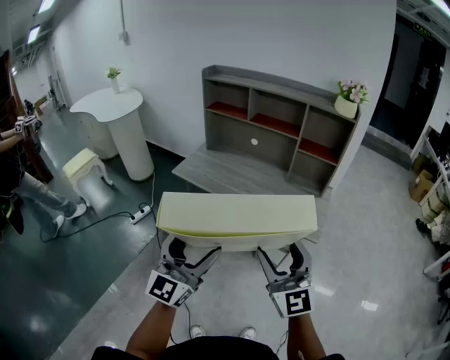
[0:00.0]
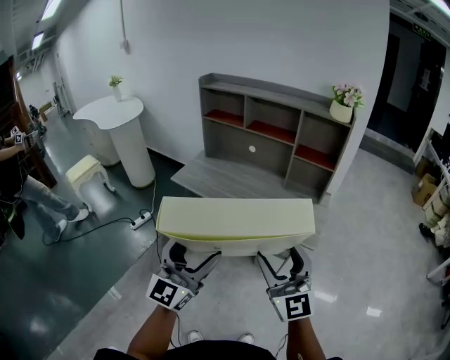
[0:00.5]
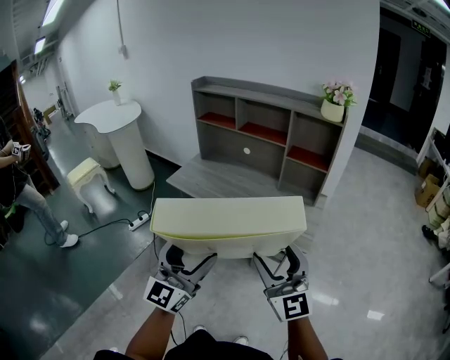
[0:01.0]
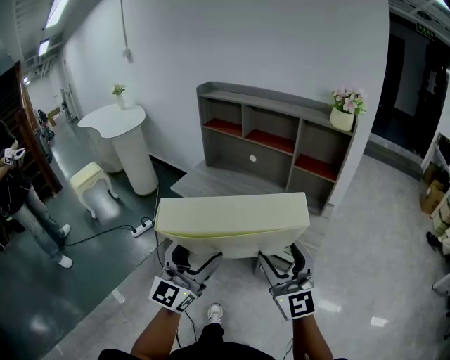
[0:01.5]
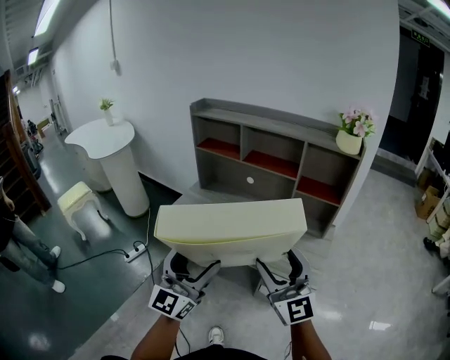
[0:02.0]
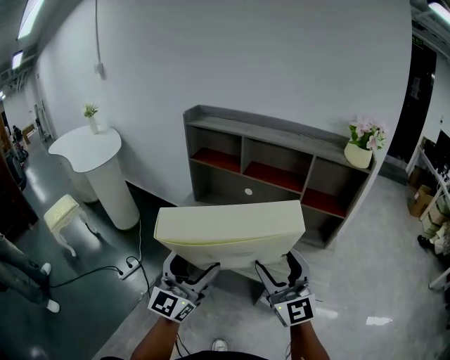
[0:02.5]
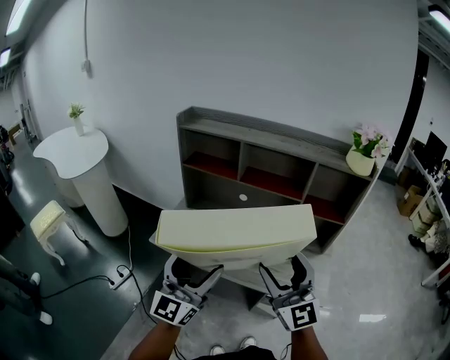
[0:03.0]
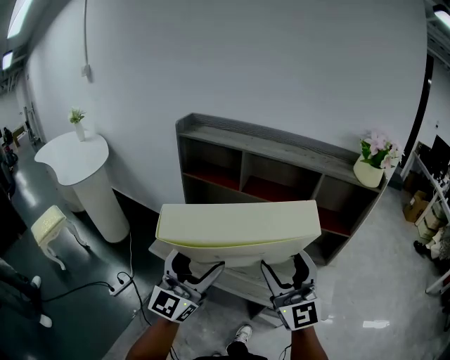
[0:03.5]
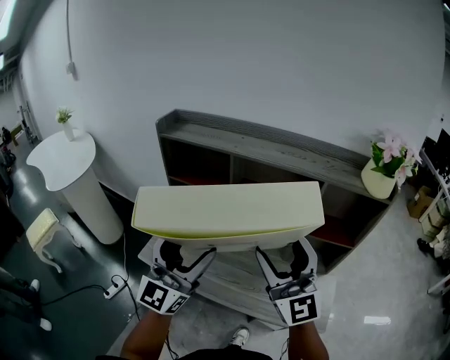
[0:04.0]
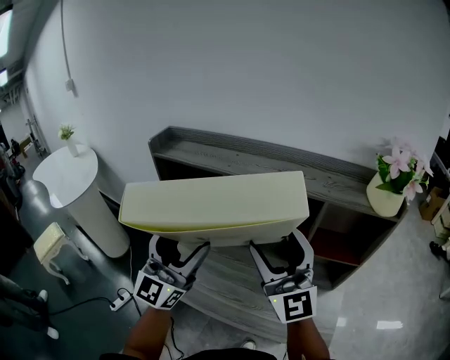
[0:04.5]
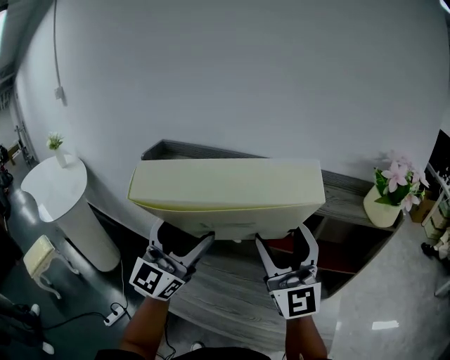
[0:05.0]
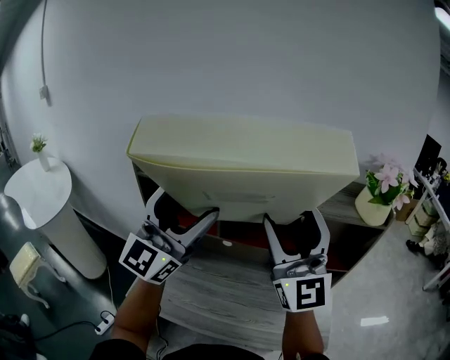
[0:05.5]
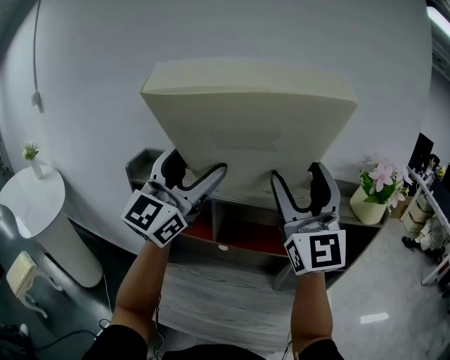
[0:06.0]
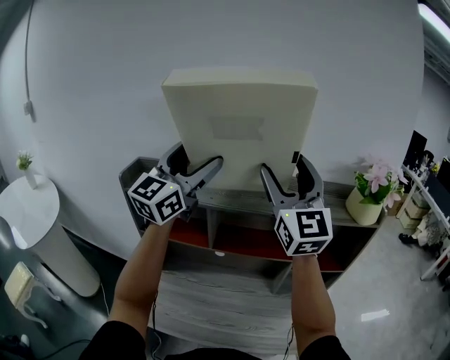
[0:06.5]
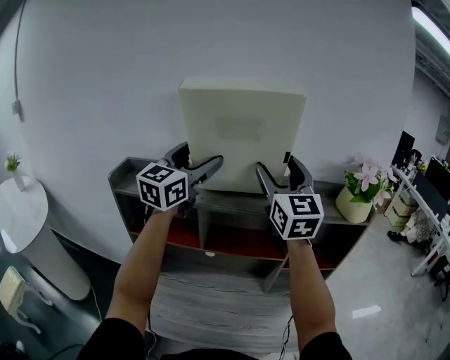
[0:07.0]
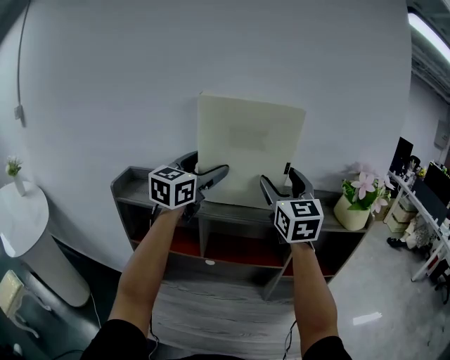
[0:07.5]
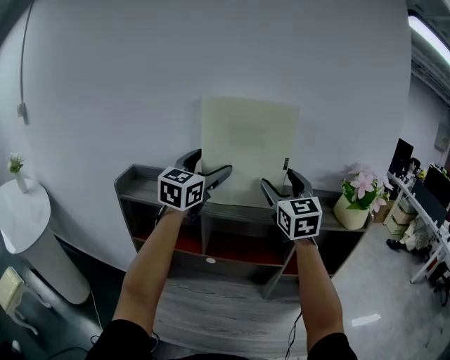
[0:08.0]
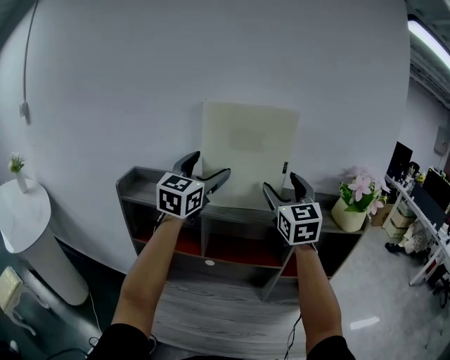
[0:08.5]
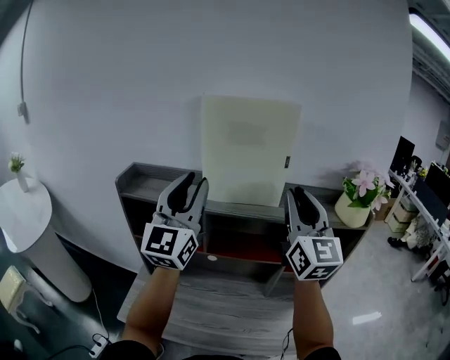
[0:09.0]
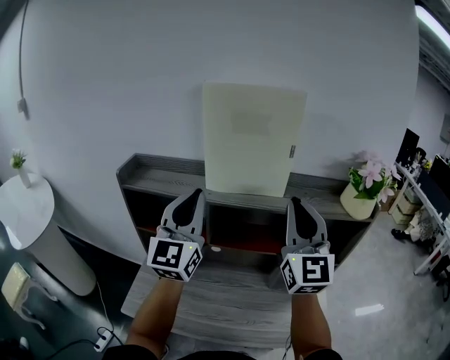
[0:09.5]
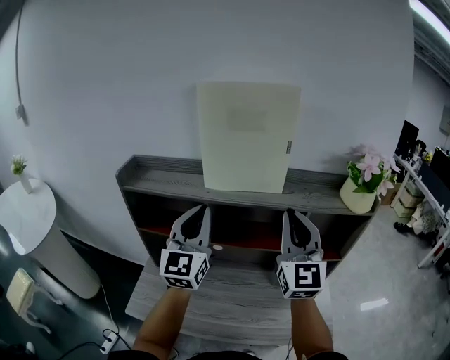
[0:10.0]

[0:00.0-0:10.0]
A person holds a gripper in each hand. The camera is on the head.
0:00.0 to 0:02.0: Both grippers travel together forward, some 15 cm.
0:02.0 to 0:04.0: The grippers both shift forward by some 30 cm.
0:04.0 to 0:06.0: Both grippers move upward and forward, approximately 25 cm.
0:06.0 to 0:08.0: The right gripper is displaced forward and downward by approximately 15 cm, and rotates roughly 30 degrees; the left gripper goes some 15 cm forward, and turns by approximately 20 degrees.
0:08.0 to 0:10.0: Both grippers move backward and downward, roughly 15 cm. The left gripper closes up. The right gripper closes its fingers.

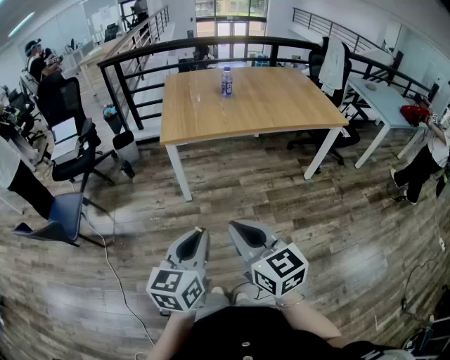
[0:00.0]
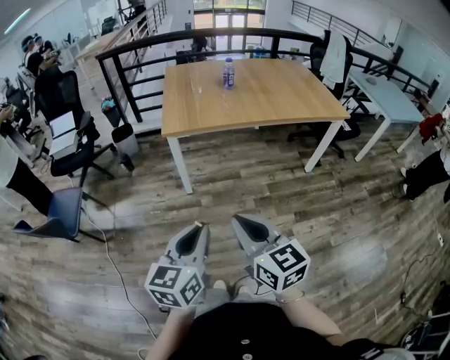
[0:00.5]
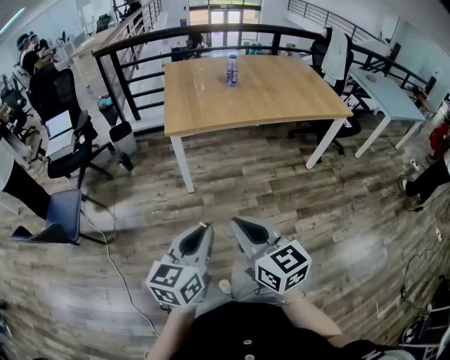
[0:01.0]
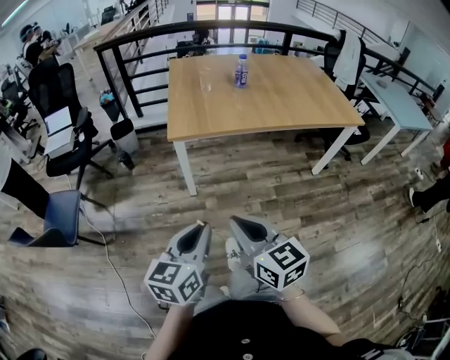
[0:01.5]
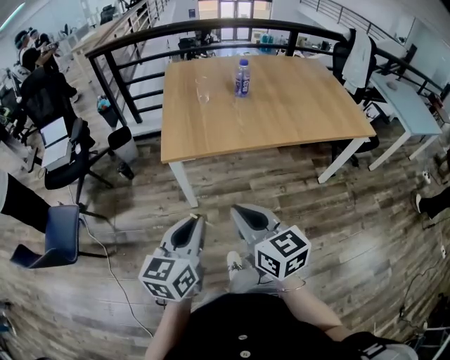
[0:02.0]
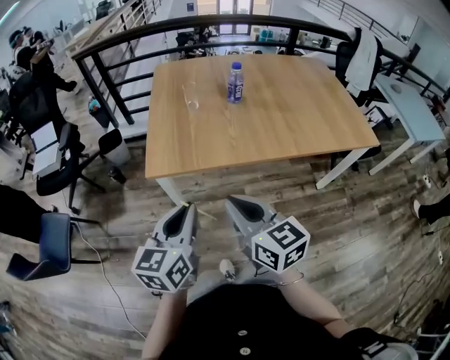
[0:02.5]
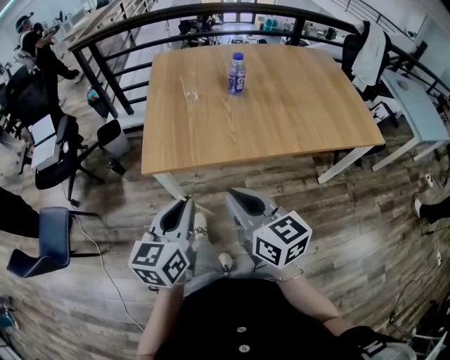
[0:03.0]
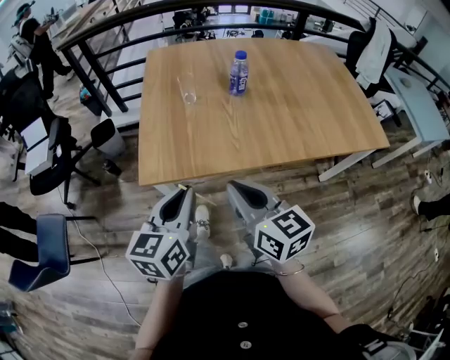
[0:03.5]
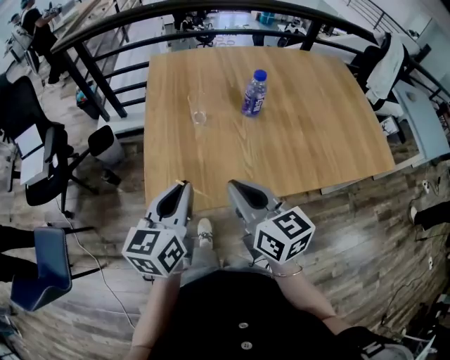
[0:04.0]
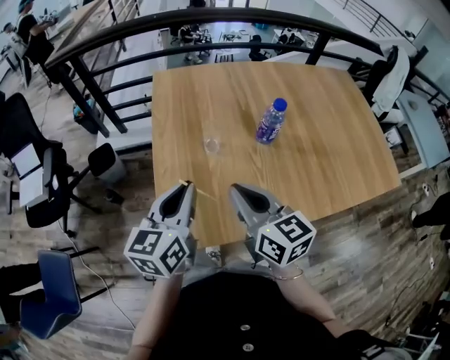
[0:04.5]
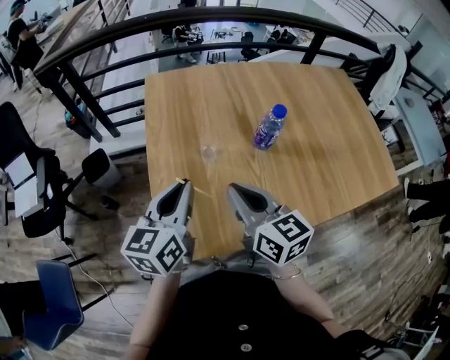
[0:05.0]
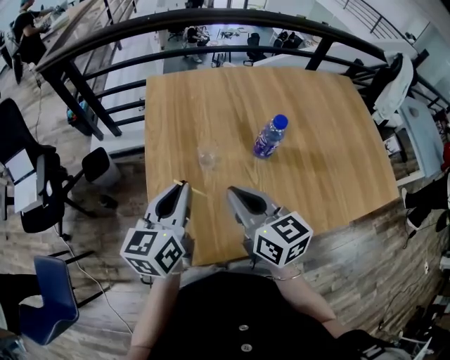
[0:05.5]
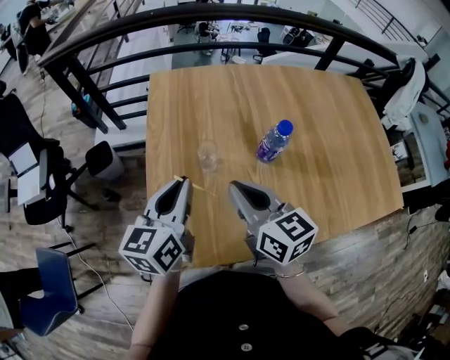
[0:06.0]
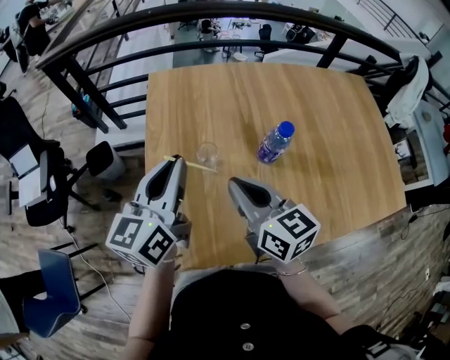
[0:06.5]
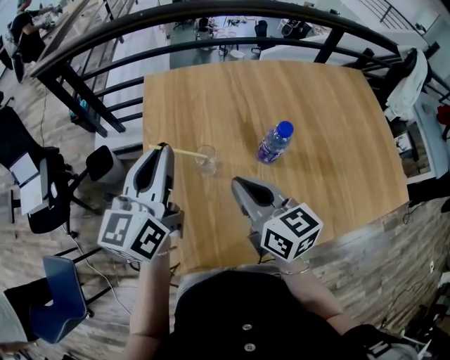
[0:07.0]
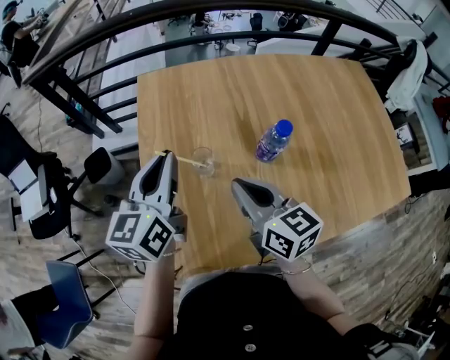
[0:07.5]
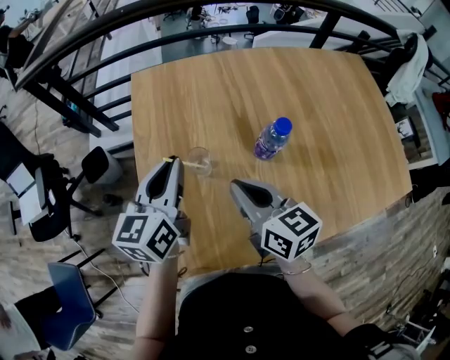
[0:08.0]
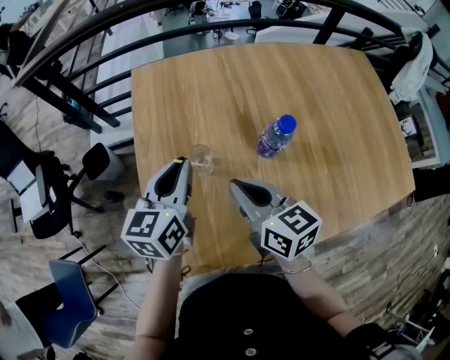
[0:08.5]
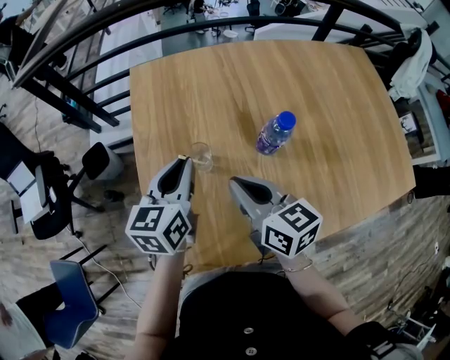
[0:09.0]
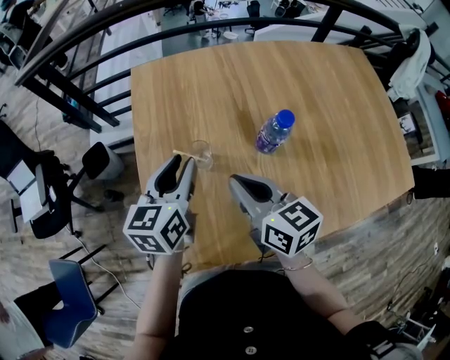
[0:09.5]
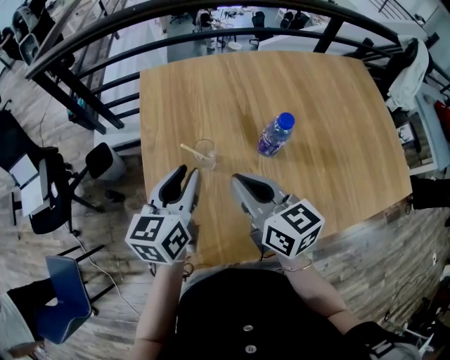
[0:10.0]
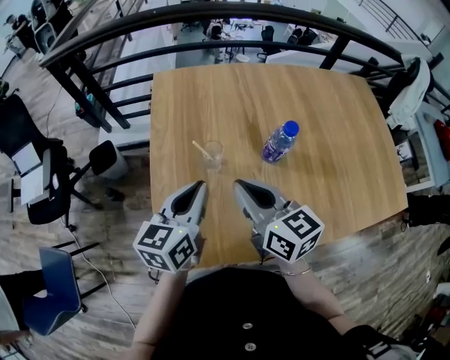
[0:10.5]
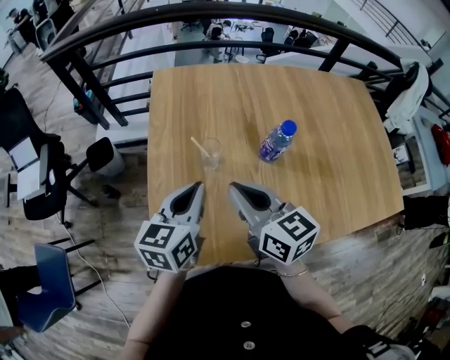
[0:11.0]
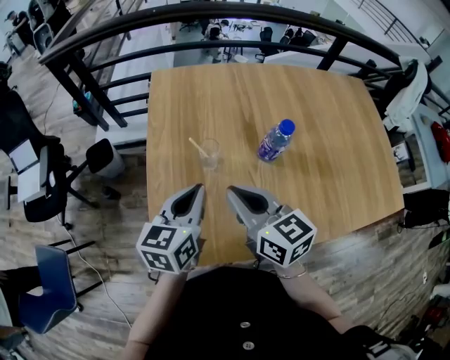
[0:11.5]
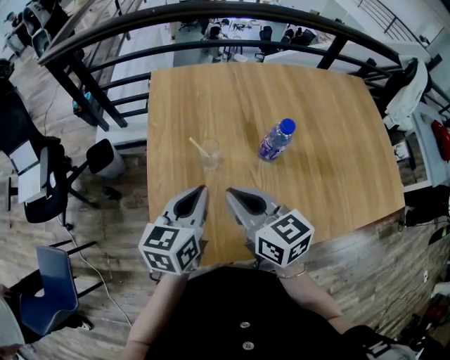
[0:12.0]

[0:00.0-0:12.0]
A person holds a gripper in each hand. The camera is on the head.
0:00.0 to 0:02.0: The two grippers go some 30 cm forward.
0:02.0 to 0:04.0: Both grippers move forward, about 40 cm.
0:04.0 to 0:06.0: The grippers both shift forward by roughly 20 cm.
0:06.0 to 0:08.0: The left gripper goes about 10 cm forward, while the right gripper ends up some 5 cm from where it was.
0:08.0 to 0:10.0: The left gripper changes place by some 5 cm.
0:10.0 to 0:12.0: The left gripper goes about 5 cm backward, and closes its fingers. The right gripper shifts by about 5 cm.

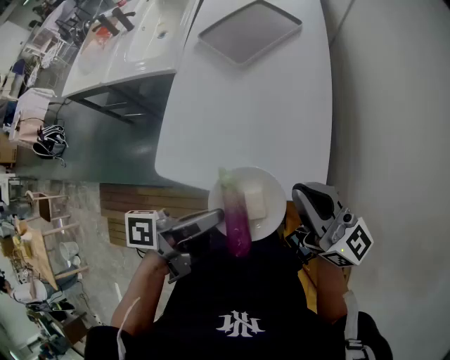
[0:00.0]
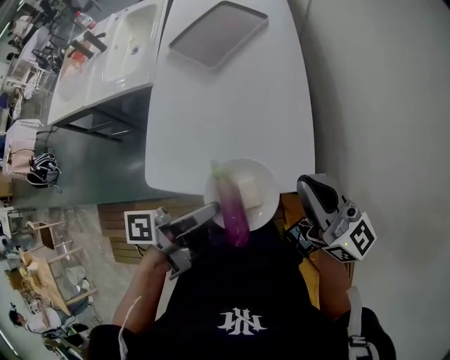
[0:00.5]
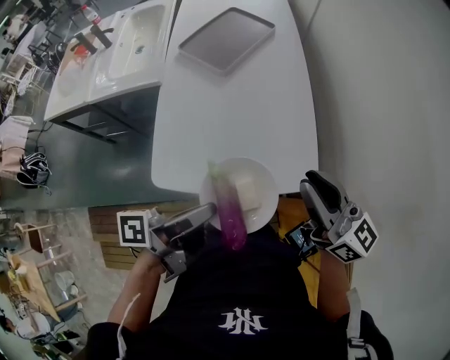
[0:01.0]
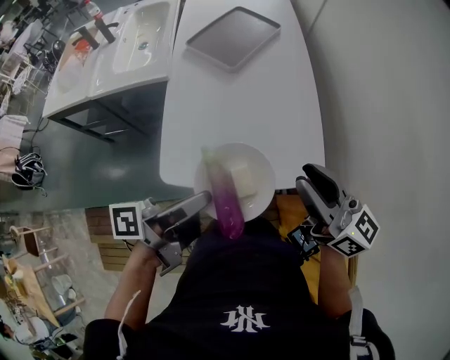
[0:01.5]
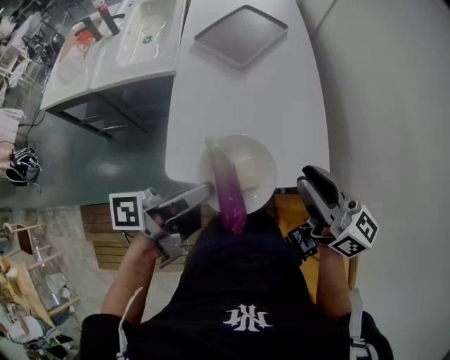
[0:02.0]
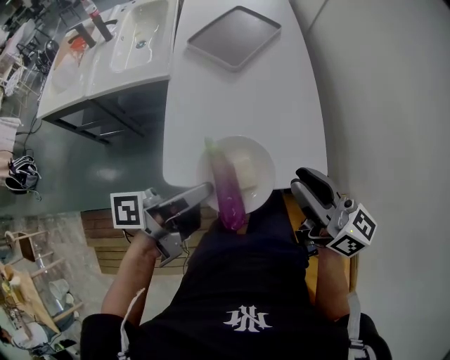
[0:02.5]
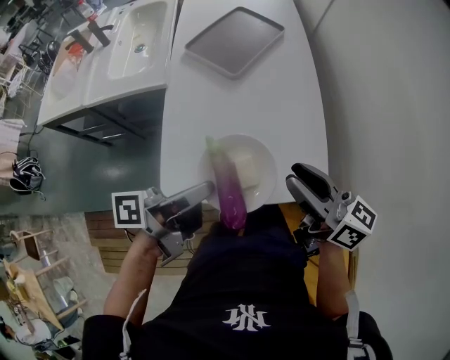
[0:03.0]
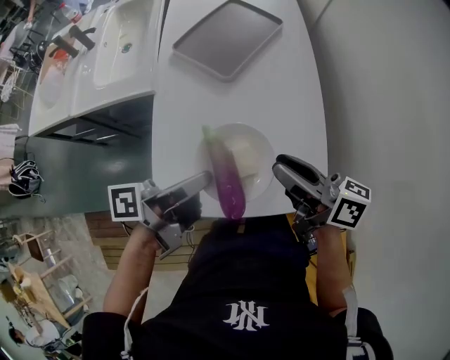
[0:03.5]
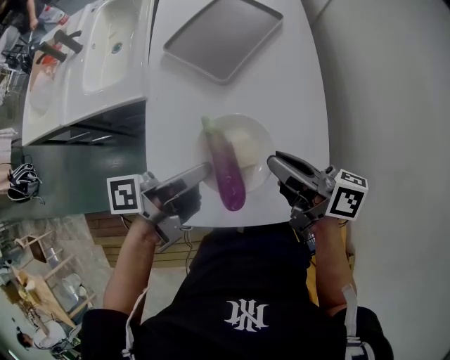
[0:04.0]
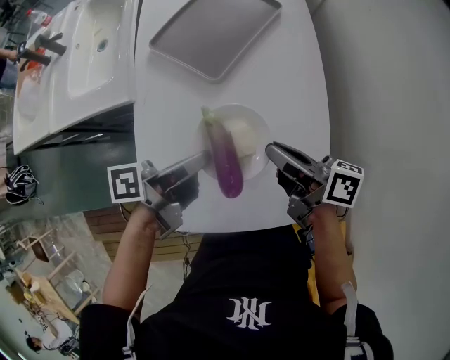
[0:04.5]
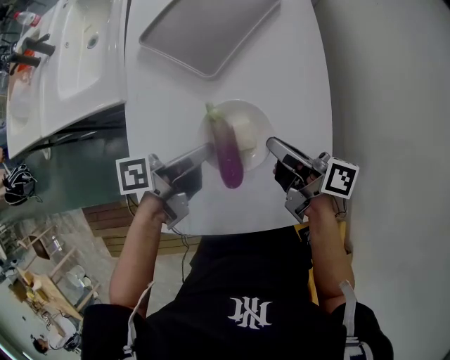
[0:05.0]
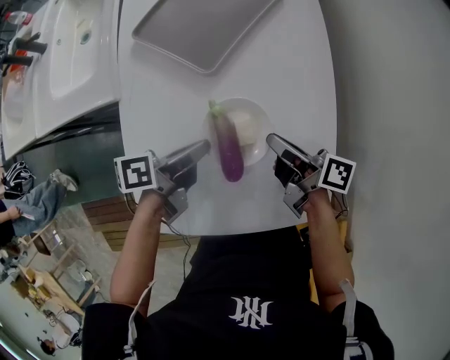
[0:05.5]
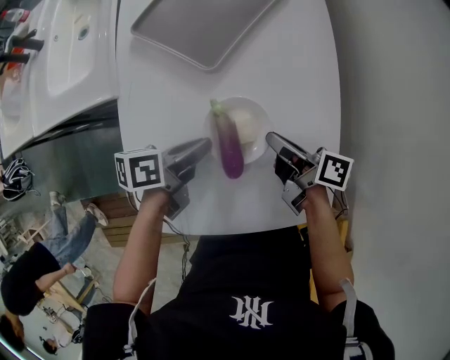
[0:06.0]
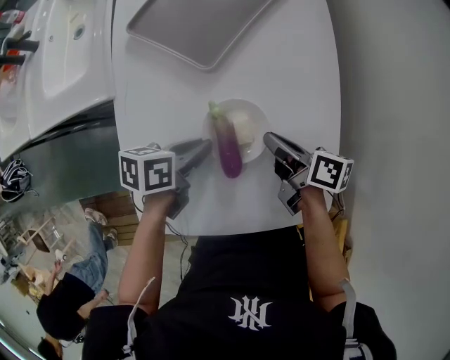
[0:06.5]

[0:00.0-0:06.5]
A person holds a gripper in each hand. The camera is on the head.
0:00.0 to 0:02.0: The right gripper changes place by about 10 cm.
0:02.0 to 0:04.5: The right gripper ends up some 25 cm from where it was, and turns by about 40 degrees.
0:04.5 to 0:06.5: The right gripper moves downward, roughly 15 cm, and rotates roughly 20 degrees.
